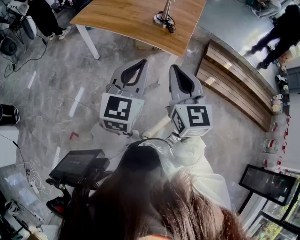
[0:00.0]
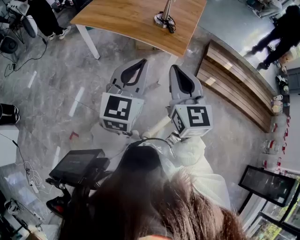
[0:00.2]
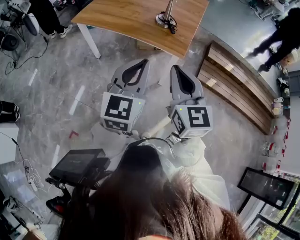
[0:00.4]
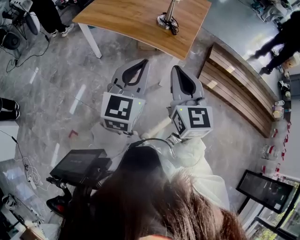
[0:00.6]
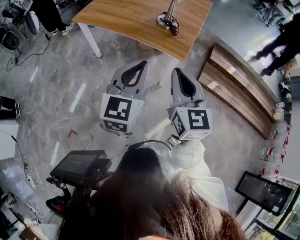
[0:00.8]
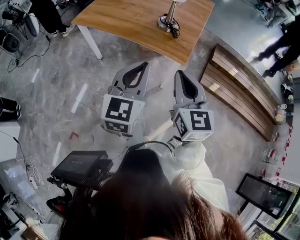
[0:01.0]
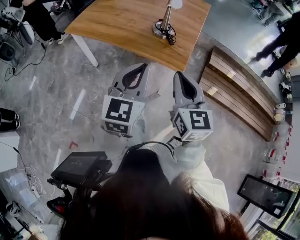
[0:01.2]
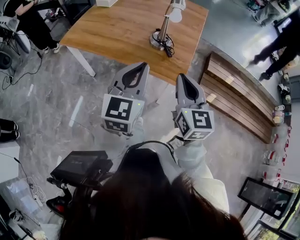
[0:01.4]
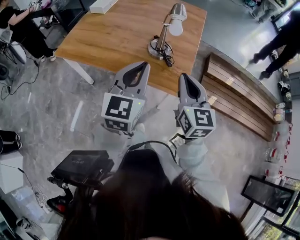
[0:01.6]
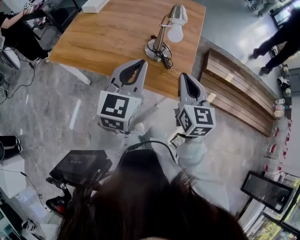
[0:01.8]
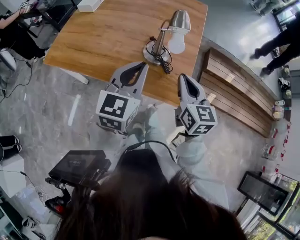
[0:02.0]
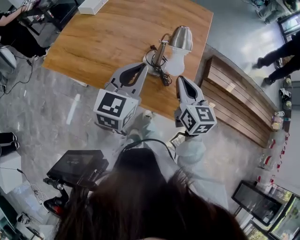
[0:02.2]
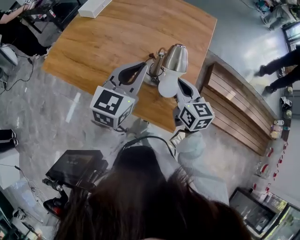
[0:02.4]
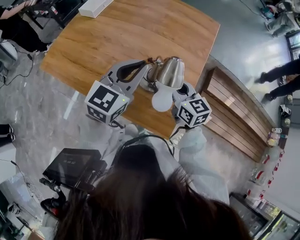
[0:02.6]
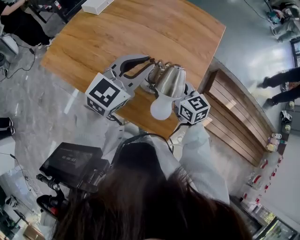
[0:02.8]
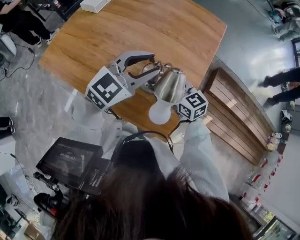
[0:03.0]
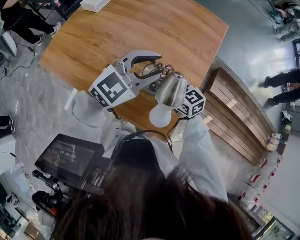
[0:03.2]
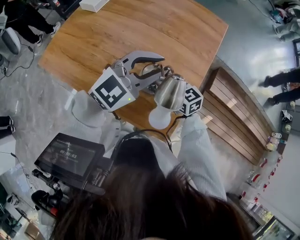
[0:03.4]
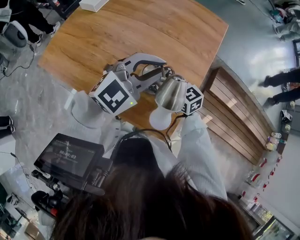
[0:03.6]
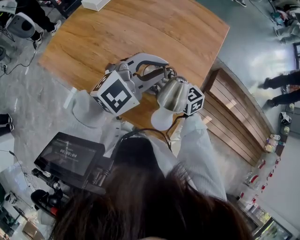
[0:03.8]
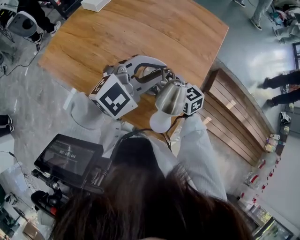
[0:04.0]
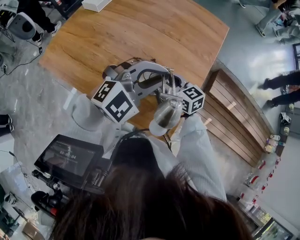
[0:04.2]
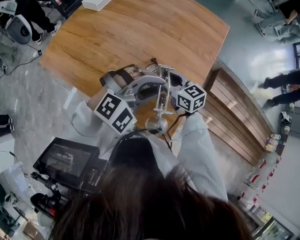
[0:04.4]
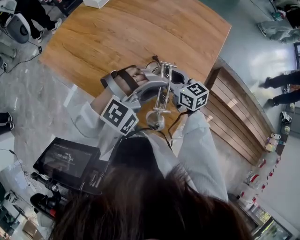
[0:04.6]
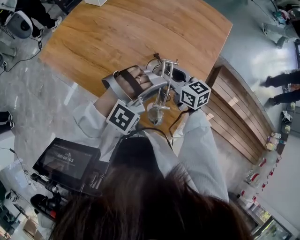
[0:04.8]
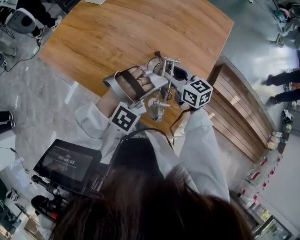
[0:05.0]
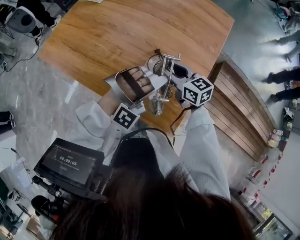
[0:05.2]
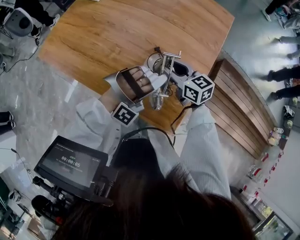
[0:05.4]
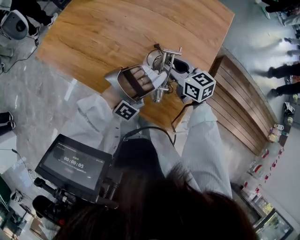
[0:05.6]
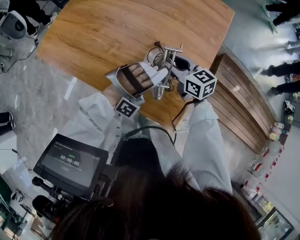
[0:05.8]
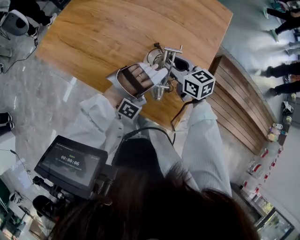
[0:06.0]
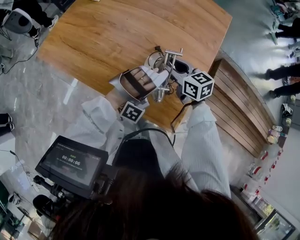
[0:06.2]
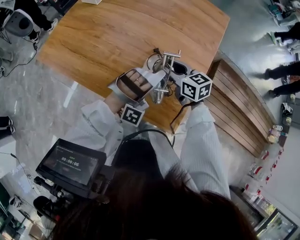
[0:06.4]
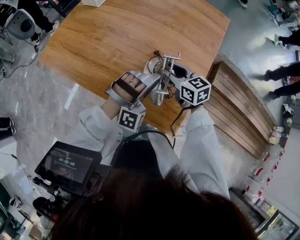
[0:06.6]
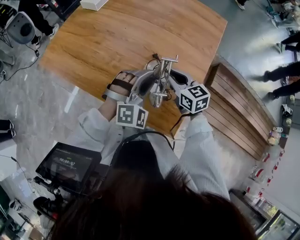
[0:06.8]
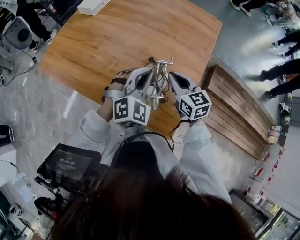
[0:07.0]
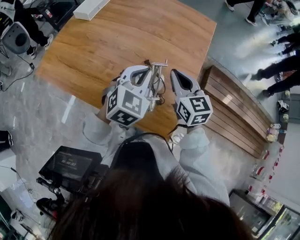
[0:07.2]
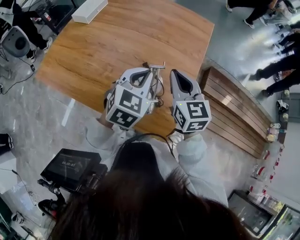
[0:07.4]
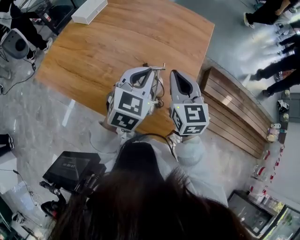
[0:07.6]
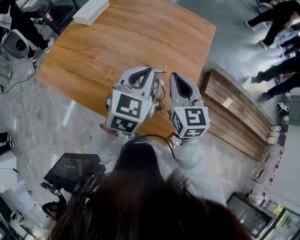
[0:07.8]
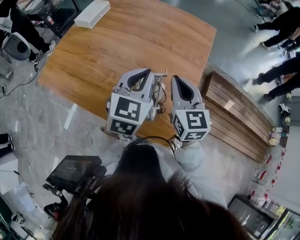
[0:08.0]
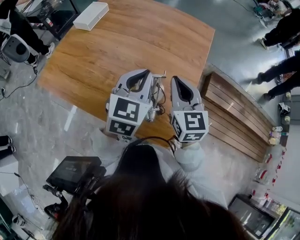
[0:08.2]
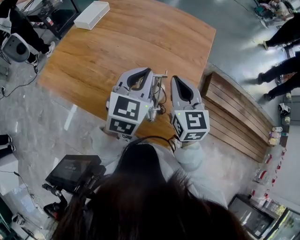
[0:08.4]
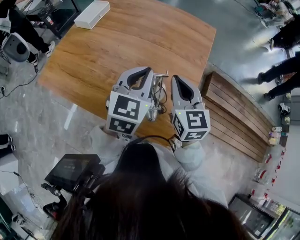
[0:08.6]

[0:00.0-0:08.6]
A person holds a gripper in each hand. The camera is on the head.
0:00.0 to 0:01.4: The grippers both shift forward by about 25 cm.
0:01.4 to 0:02.8: The two grippers go roughly 40 cm forward. The left gripper turns by about 20 degrees; the right gripper swivels approximately 30 degrees, and opens its fingers.
0:02.8 to 0:04.4: The left gripper is displaced backward by some 5 cm, and rotates around the line of its fingers by about 50 degrees, clockwise from behind. The right gripper moves some 5 cm.
0:04.4 to 0:05.8: The left gripper heads downward, covering roughly 10 cm, and rotates around the line of its fingers by some 50 degrees, clockwise from behind.
0:05.8 to 0:07.2: The left gripper heads upward and forward, covering some 10 cm, twists roughly 90 degrees counterclockwise, seen from behind, and closes. The right gripper is displaced upward by about 10 cm, turns by roughly 30 degrees, and closes its fingers.
0:07.2 to 0:08.6: Both grippers move upward, about 5 cm.

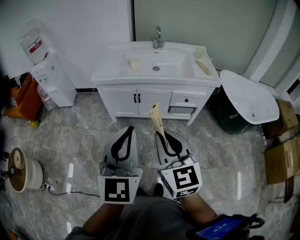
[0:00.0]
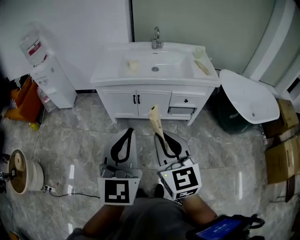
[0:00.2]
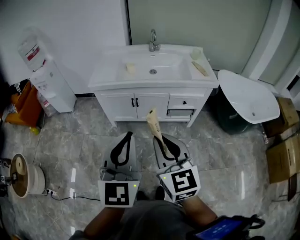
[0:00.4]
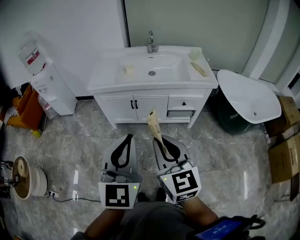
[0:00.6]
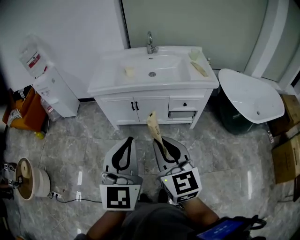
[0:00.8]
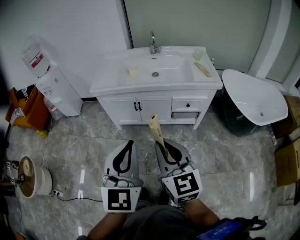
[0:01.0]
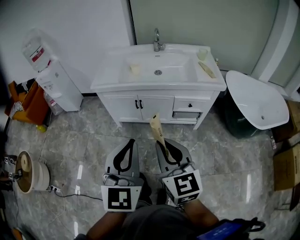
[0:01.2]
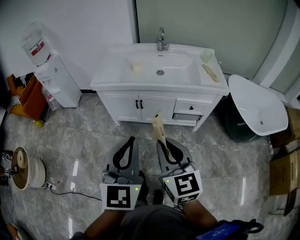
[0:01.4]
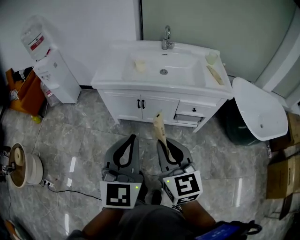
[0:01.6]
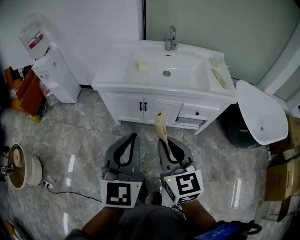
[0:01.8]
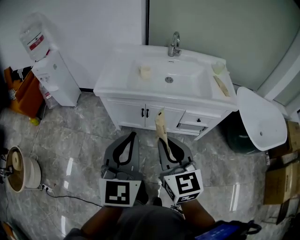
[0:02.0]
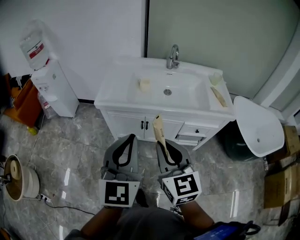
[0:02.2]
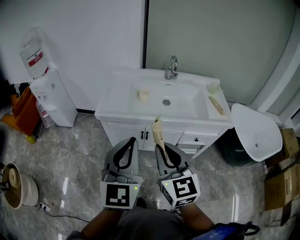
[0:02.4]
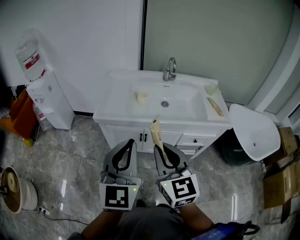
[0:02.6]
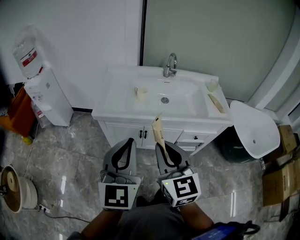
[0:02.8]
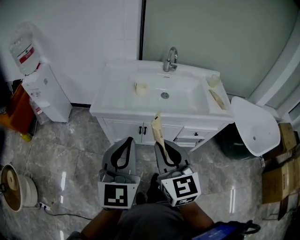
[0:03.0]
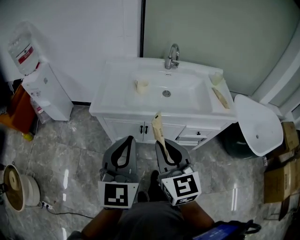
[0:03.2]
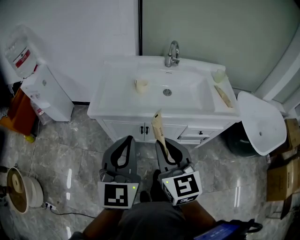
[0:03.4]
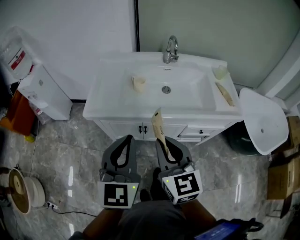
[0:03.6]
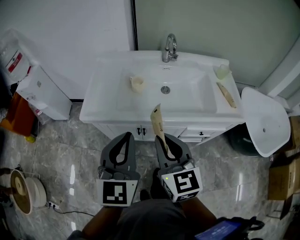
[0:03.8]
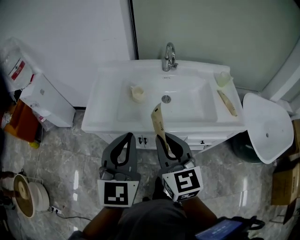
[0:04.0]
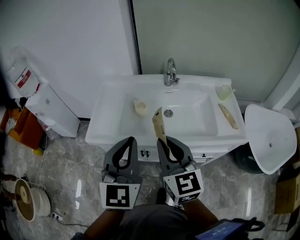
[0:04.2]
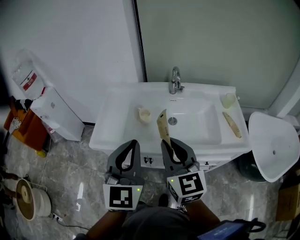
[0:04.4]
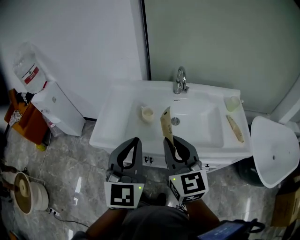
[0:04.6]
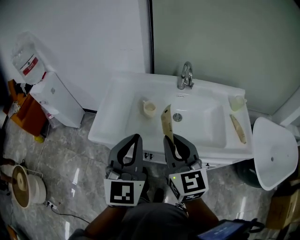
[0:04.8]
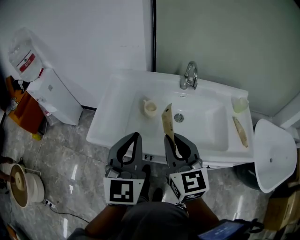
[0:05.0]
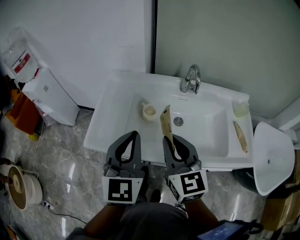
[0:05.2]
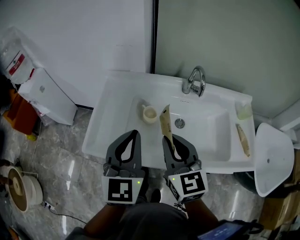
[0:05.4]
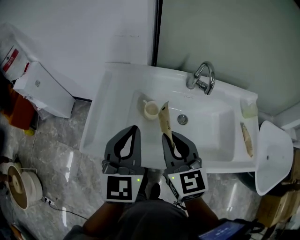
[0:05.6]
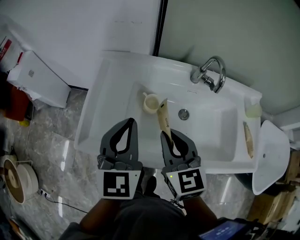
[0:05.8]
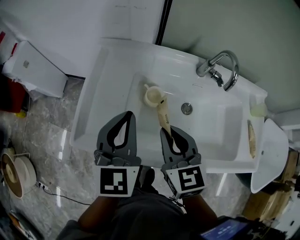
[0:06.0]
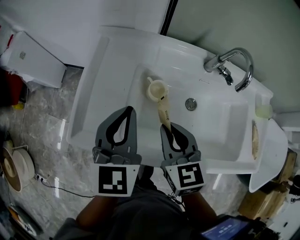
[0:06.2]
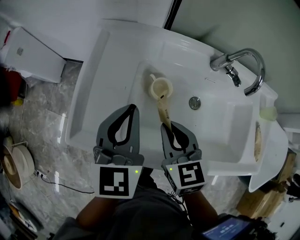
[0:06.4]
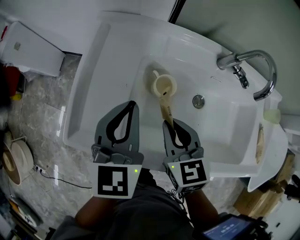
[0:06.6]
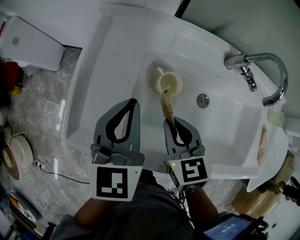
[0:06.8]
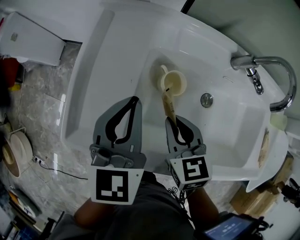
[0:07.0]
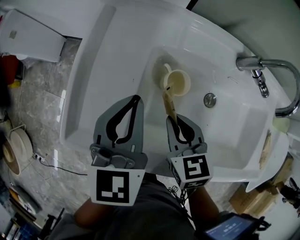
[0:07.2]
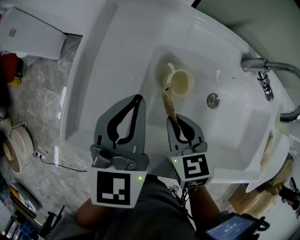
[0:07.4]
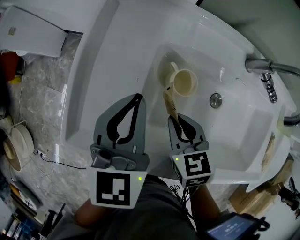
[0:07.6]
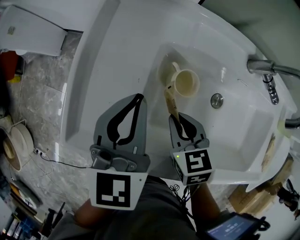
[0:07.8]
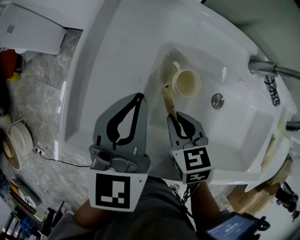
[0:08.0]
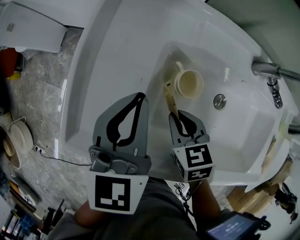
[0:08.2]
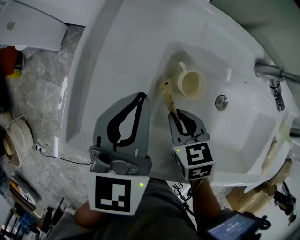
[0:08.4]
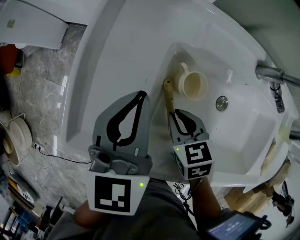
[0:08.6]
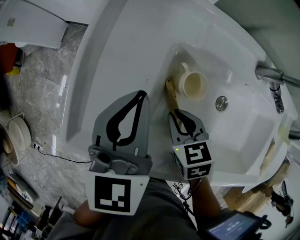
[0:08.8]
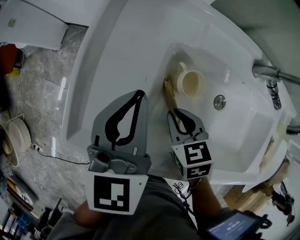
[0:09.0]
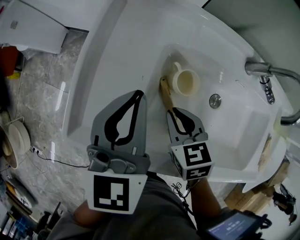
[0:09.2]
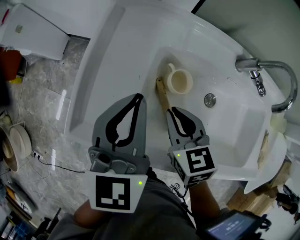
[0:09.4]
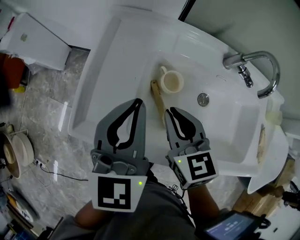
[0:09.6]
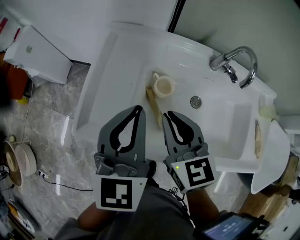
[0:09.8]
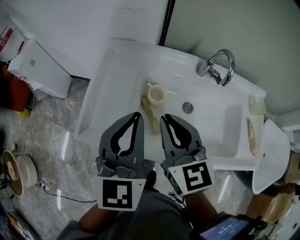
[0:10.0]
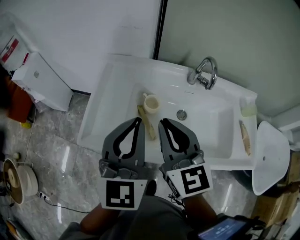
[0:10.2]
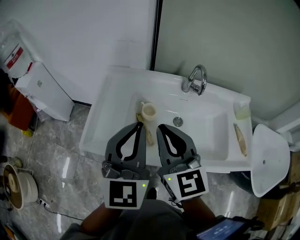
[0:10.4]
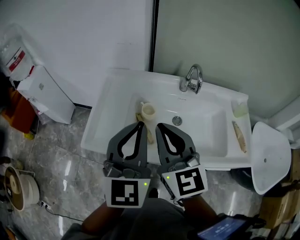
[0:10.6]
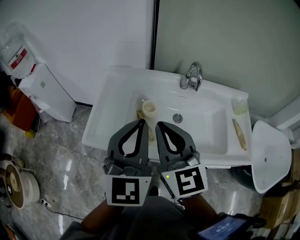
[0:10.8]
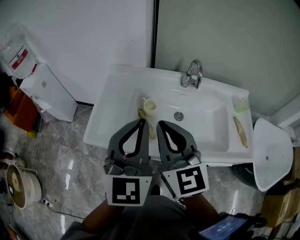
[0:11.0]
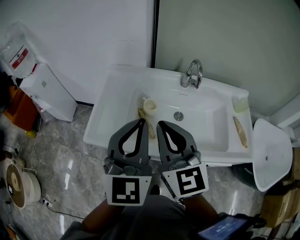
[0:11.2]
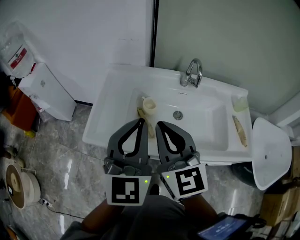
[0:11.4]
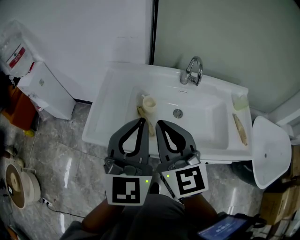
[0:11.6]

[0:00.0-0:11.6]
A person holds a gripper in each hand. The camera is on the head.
0:00.0 to 0:01.4: Both grippers travel together forward, approximately 5 cm.
0:01.4 to 0:02.8: The grippers both shift forward and to the left by about 20 cm.
0:02.8 to 0:04.4: The two grippers go roughly 25 cm forward and to the right.
0:04.4 to 0:05.8: Both grippers move forward and downward, about 25 cm.
0:05.8 to 0:07.2: The left gripper travels downward and forward by some 15 cm; the right gripper heads downward, covering some 20 cm, and swivels approximately 20 degrees.
0:07.2 to 0:08.8: The right gripper is displaced downward by some 5 cm.
0:08.8 to 0:10.2: The left gripper heads upward and backward, covering about 25 cm, and swivels roughly 20 degrees. Meanwhile the right gripper moves upward, about 35 cm, and tilts its fingers some 40 degrees upward.
0:10.2 to 0:11.6: Both grippers move backward, about 5 cm.
